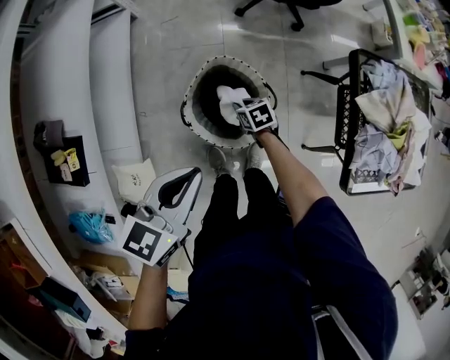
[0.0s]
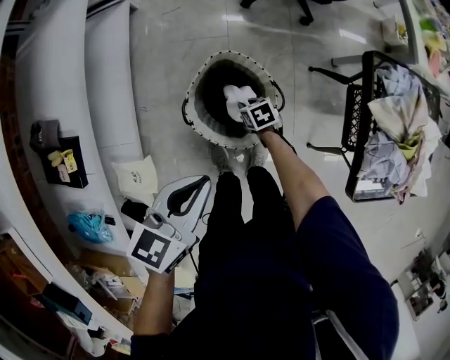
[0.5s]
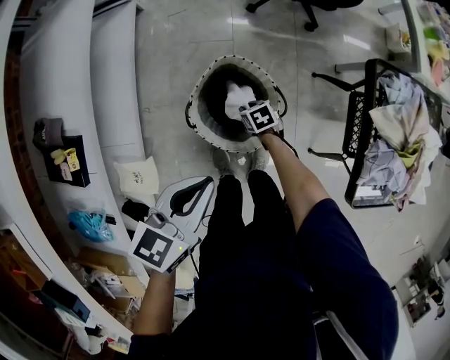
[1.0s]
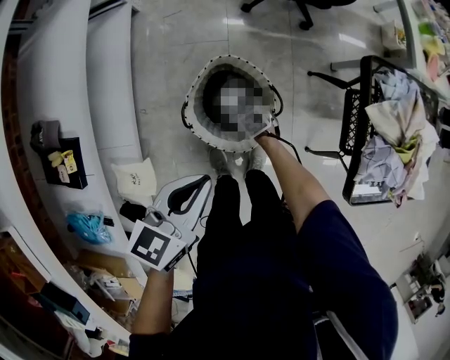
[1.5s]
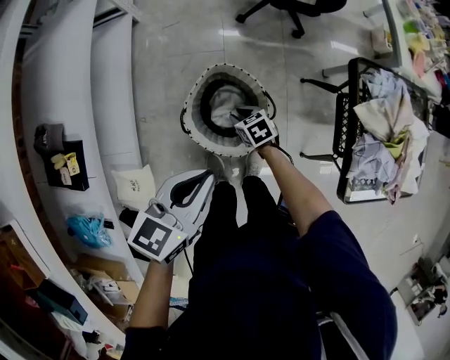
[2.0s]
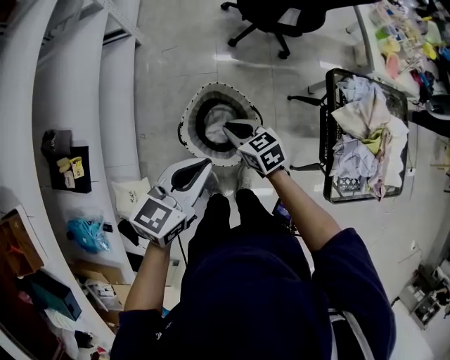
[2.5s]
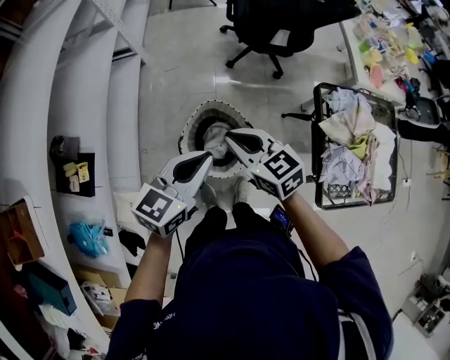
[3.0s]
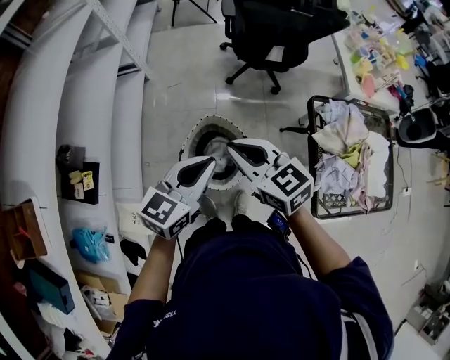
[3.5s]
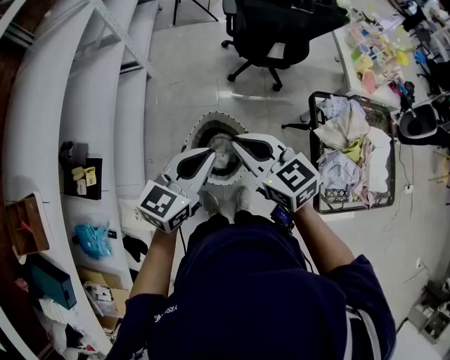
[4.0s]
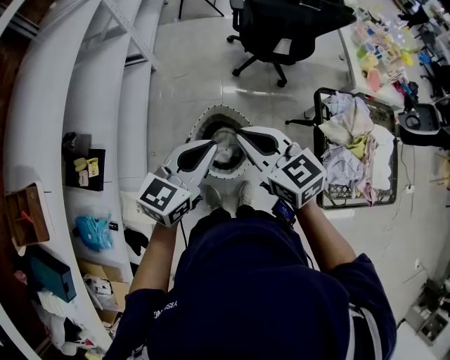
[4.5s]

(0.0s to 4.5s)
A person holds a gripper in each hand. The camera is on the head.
0.0s - 2.0s: The right gripper reaches roughly 5 cm downward, then returns.
2.0s - 4.5s: The left gripper heads upward, covering roughly 15 cm, while the right gripper moves upward, some 50 cm, points its fingers roughly 40 degrees further upward, and closes.

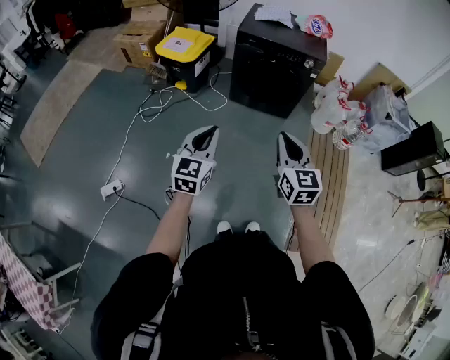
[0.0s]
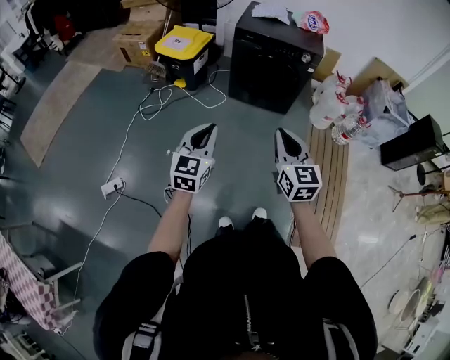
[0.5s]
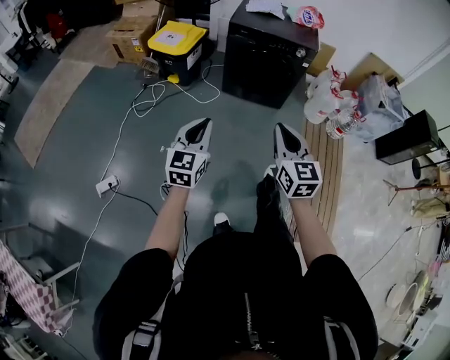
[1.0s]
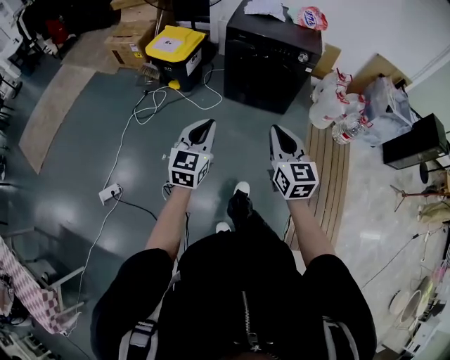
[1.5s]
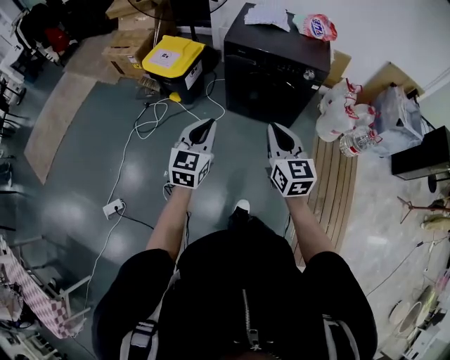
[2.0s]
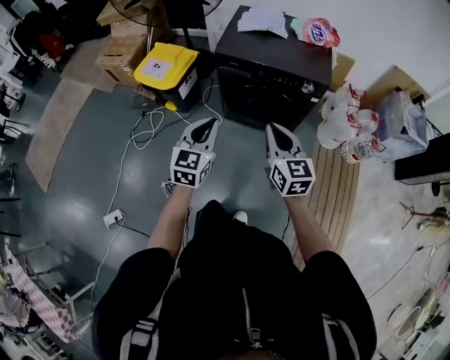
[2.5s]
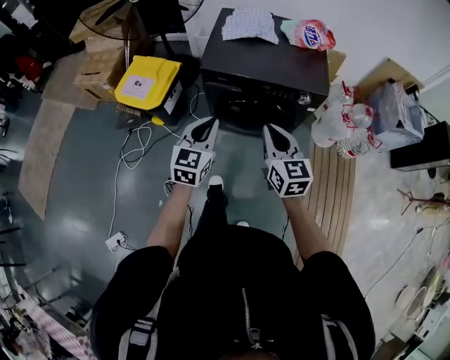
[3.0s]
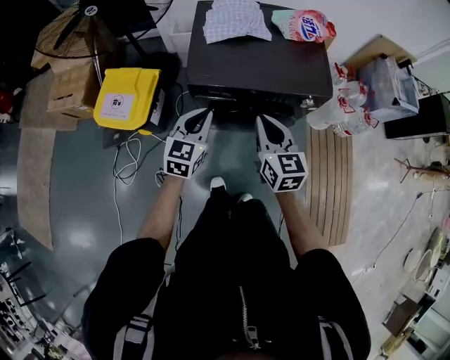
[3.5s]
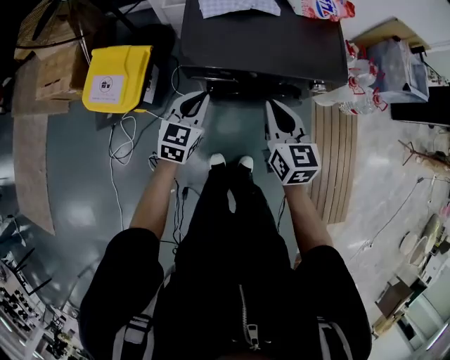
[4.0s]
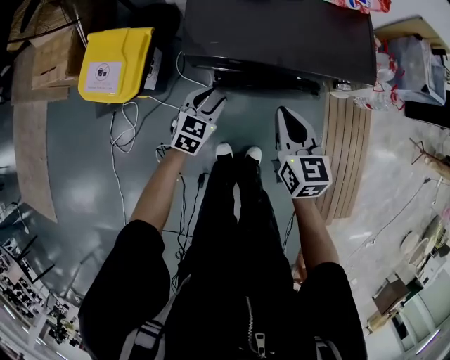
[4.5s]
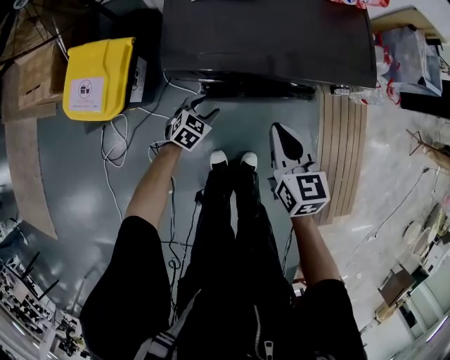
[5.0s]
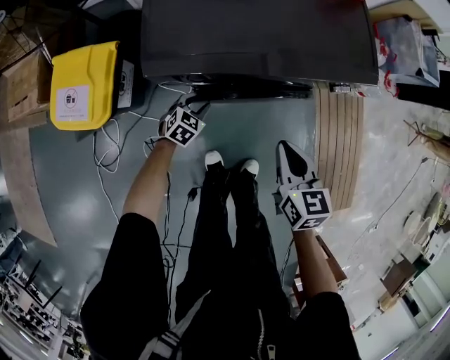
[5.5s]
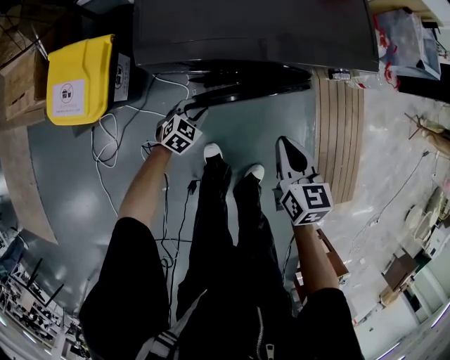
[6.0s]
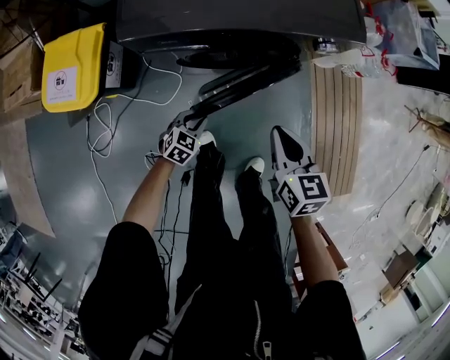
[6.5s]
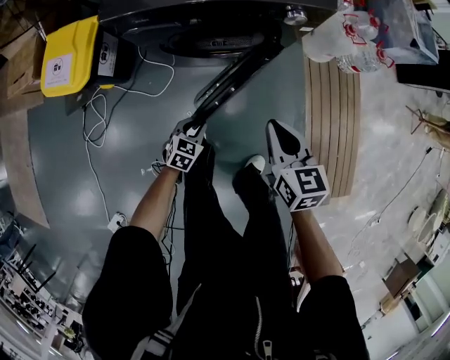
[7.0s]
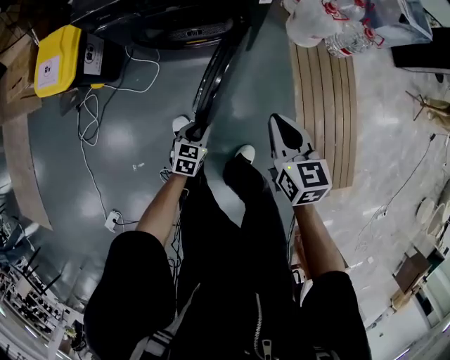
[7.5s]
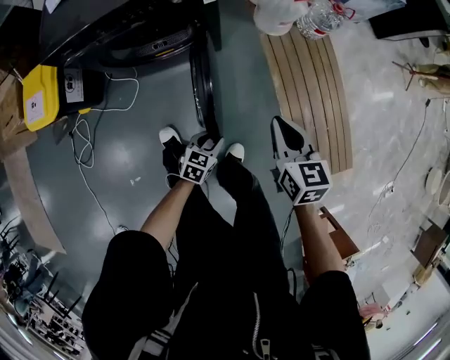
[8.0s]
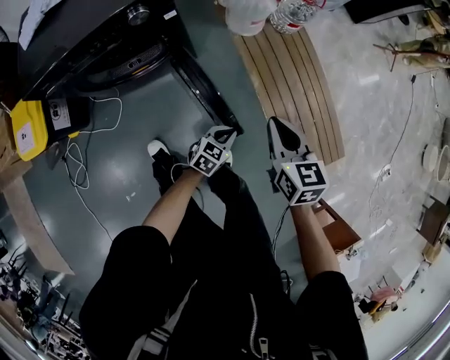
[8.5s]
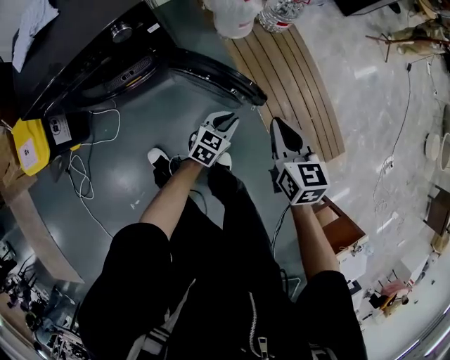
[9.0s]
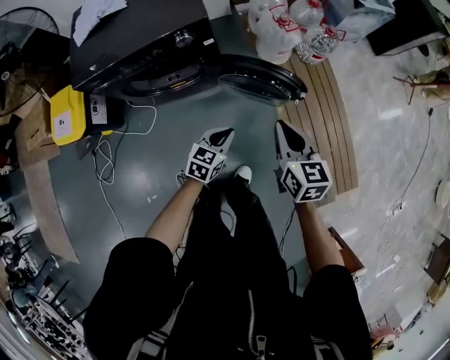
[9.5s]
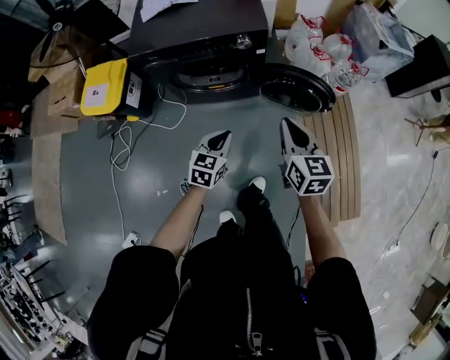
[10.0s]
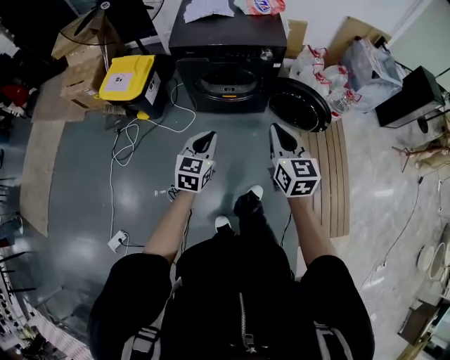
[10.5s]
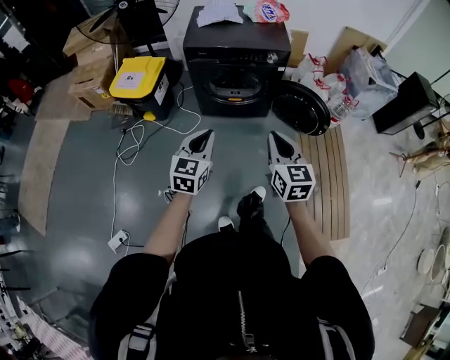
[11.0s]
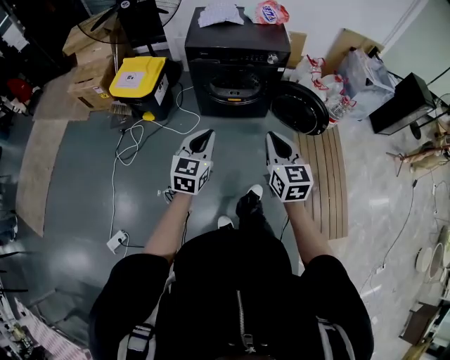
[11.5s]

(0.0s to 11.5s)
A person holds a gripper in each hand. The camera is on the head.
0.0s - 2.0s: The grippers both shift forward by about 25 cm.
2.0s - 4.0s: Both grippers are carried forward, roughly 50 cm. The right gripper turns by about 20 degrees. The left gripper rotates approximately 30 degrees.
4.0s - 6.0s: The right gripper shifts some 20 cm downward and to the right. Meanwhile the left gripper travels downward by about 35 cm, changes its angle by about 30 degrees, and opens its fingers.
6.0s - 7.5s: Both grippers travel together to the right and backward, about 35 cm. The left gripper rotates some 20 degrees.
7.5s - 9.5s: The right gripper ends up roughly 20 cm from where it was; the left gripper ends up approximately 30 cm from where it was, turns by some 20 degrees, and closes its fingers.
9.5s - 11.5s: The two grippers travel together, to the left and backward, some 40 cm. The right gripper goes roughly 15 cm upward, and rotates roughly 20 degrees, while the left gripper is displaced upward by roughly 30 cm, and turns by roughly 40 degrees.

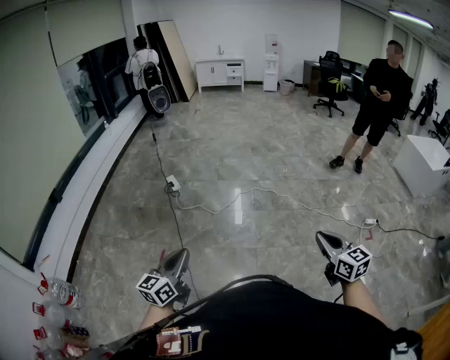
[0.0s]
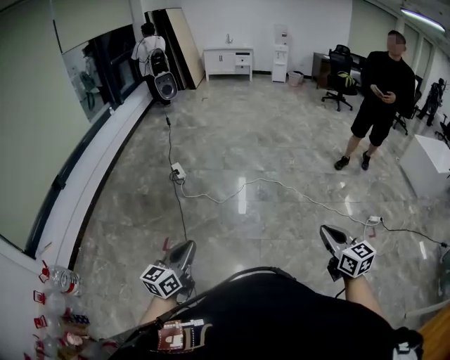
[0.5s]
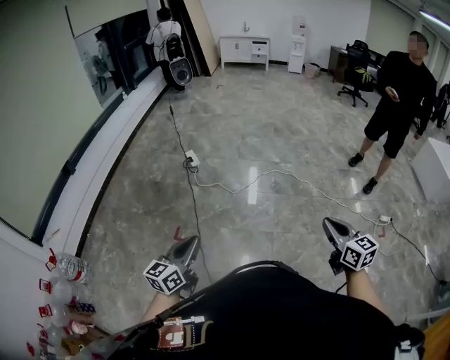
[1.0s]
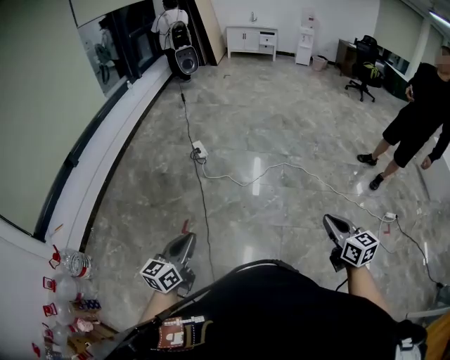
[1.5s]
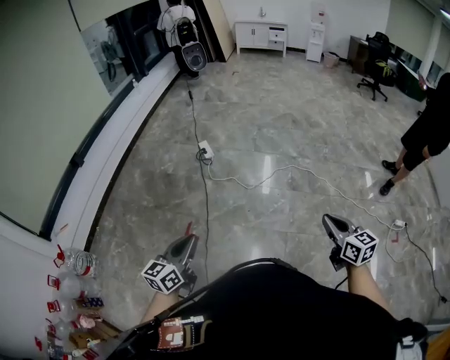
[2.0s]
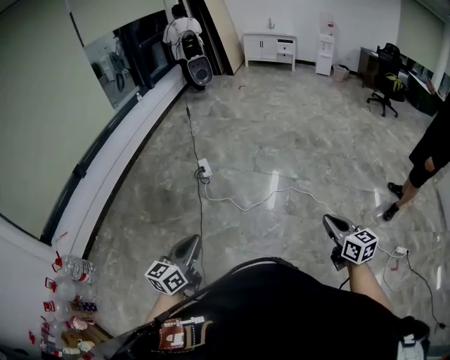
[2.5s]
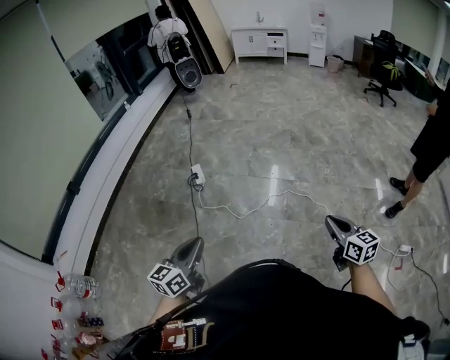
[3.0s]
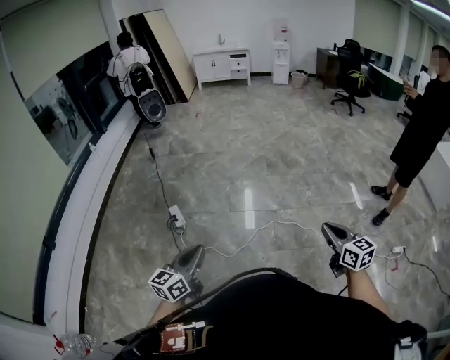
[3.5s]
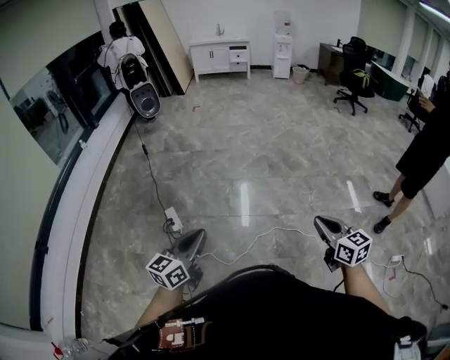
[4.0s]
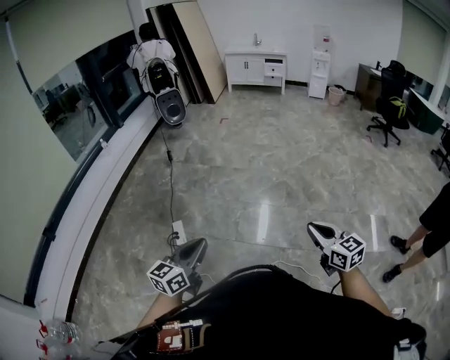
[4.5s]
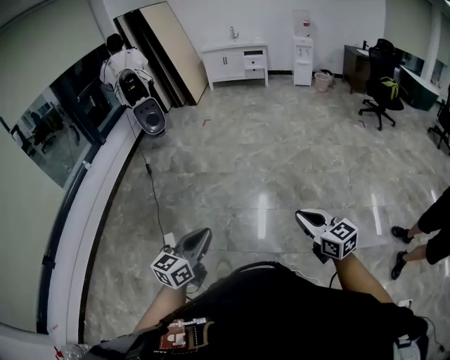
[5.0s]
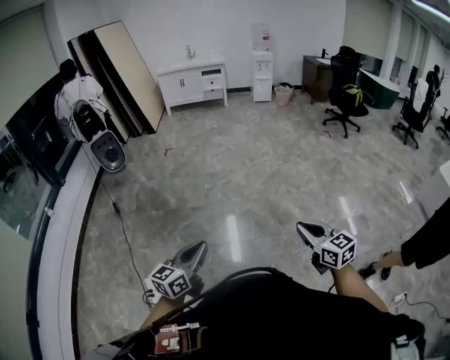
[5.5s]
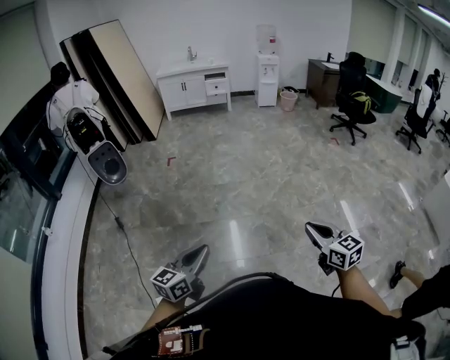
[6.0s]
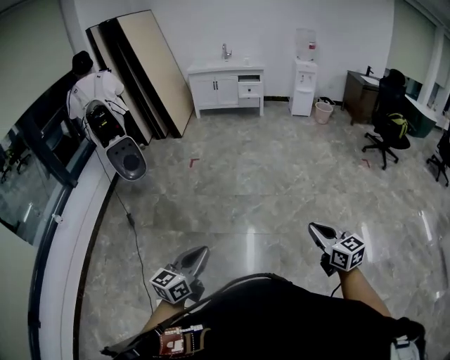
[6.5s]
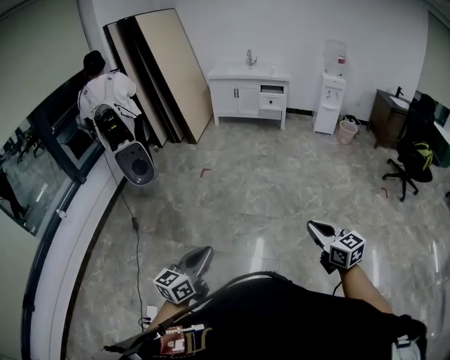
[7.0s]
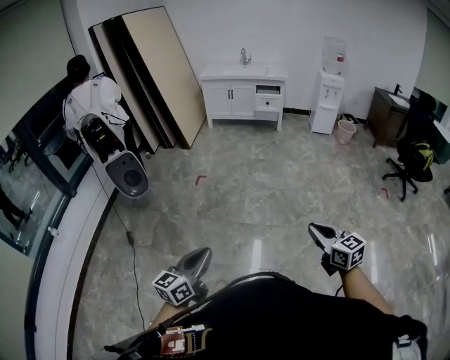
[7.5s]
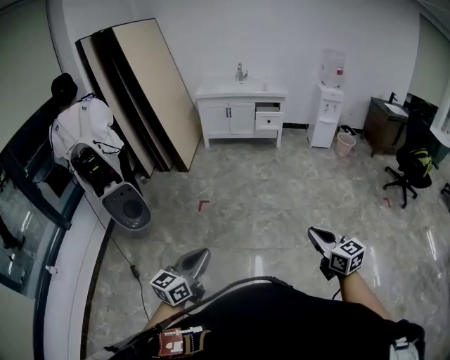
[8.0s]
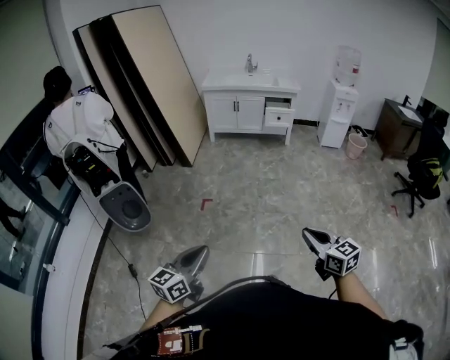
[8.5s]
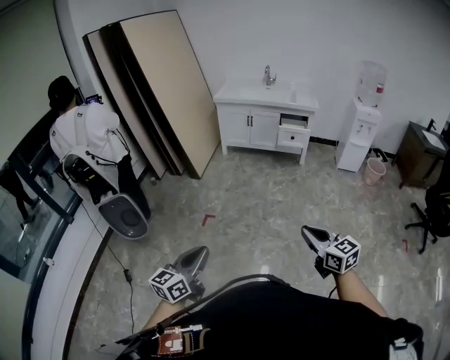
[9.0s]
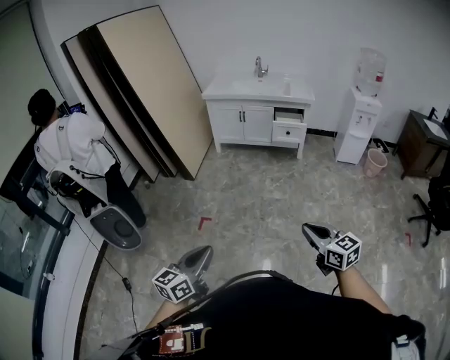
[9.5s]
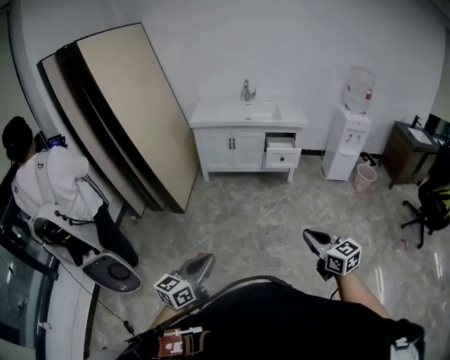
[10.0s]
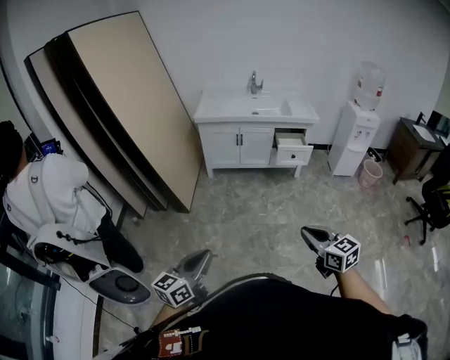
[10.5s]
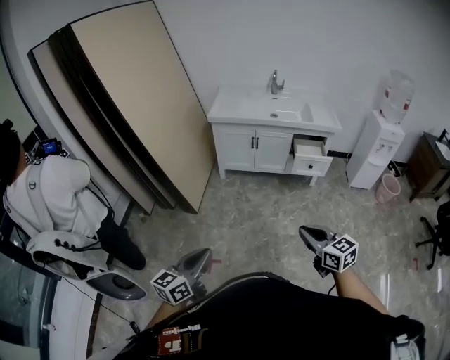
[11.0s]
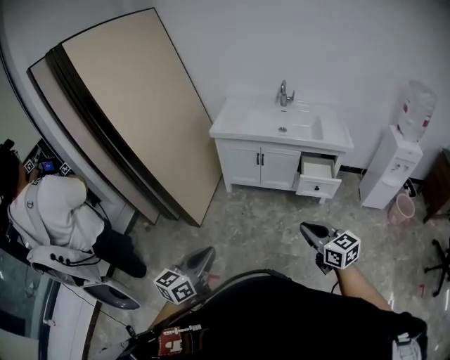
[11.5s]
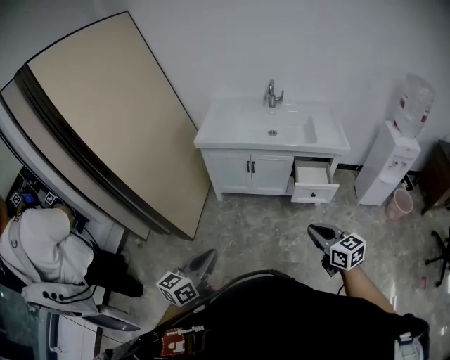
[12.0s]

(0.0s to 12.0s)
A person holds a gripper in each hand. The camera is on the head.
0.0s - 2.0s: The left gripper shifts some 15 cm to the left and forward; the right gripper shifts some 25 cm forward and to the left.
2.0s - 4.0s: The pair of grippers is taken forward, approximately 60 cm.
4.0s - 6.0s: The two grippers travel together, forward, roughly 70 cm.
6.0s - 8.0s: The pair of grippers is taken forward, roughly 70 cm.
8.0s - 10.0s: Both grippers are carried forward, roughly 60 cm.
10.0s - 12.0s: The pair of grippers is taken forward, approximately 50 cm.
